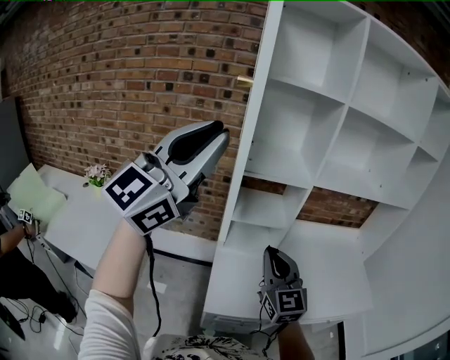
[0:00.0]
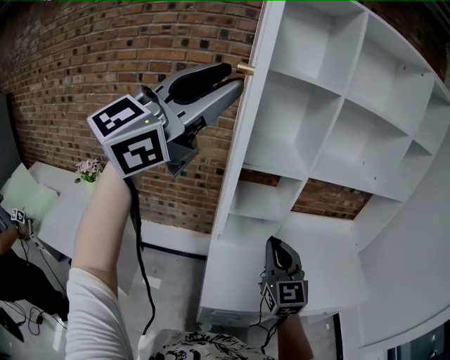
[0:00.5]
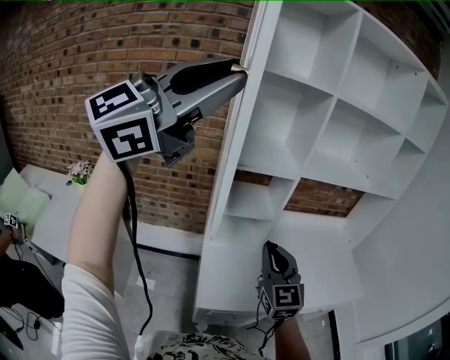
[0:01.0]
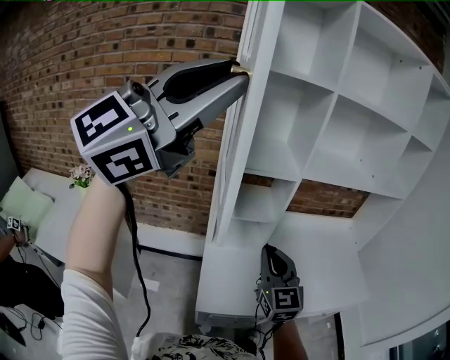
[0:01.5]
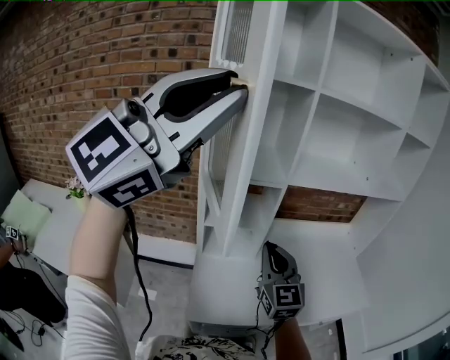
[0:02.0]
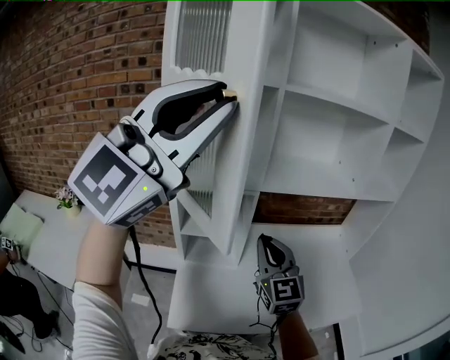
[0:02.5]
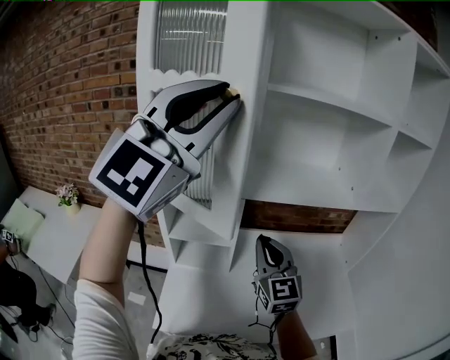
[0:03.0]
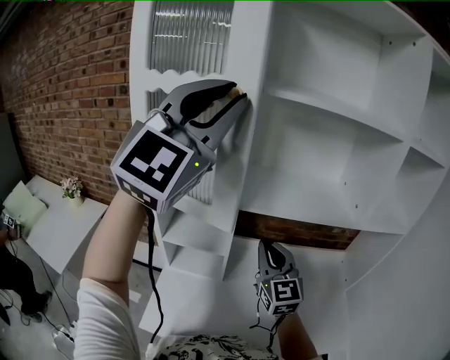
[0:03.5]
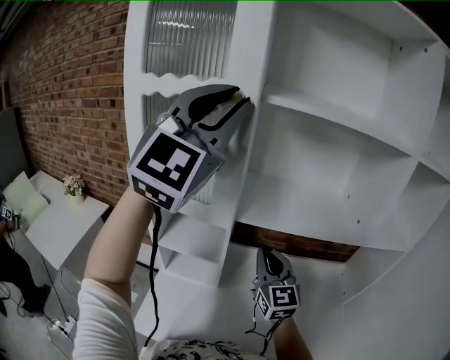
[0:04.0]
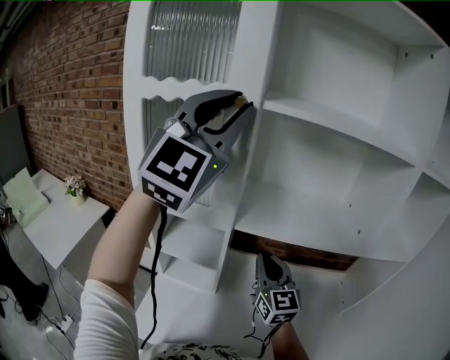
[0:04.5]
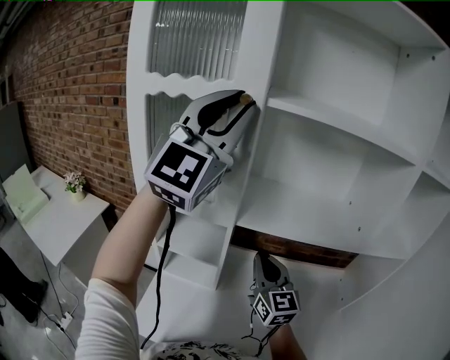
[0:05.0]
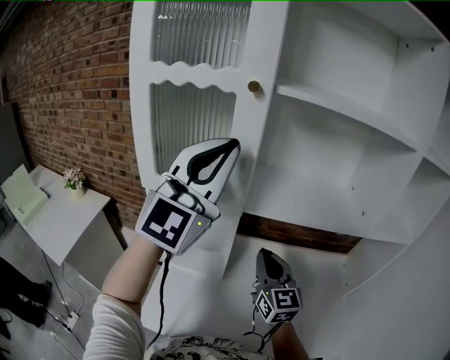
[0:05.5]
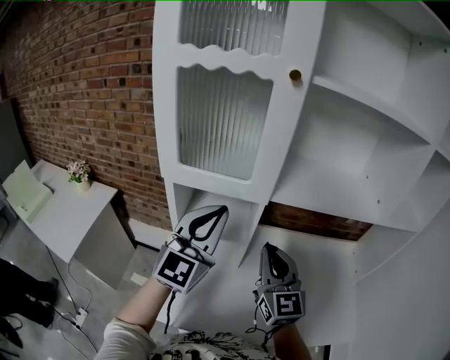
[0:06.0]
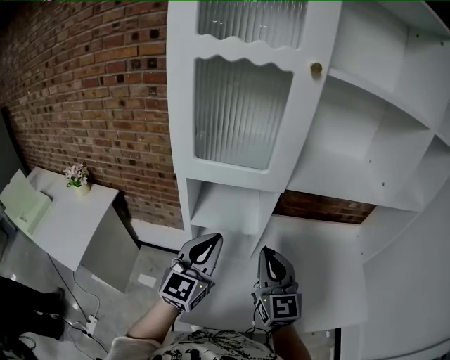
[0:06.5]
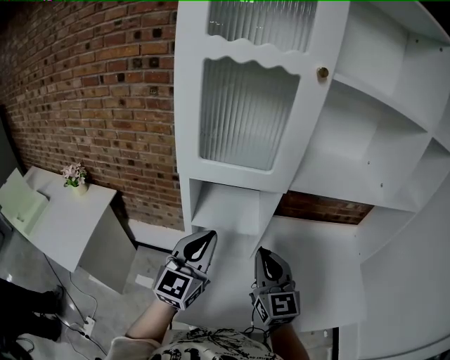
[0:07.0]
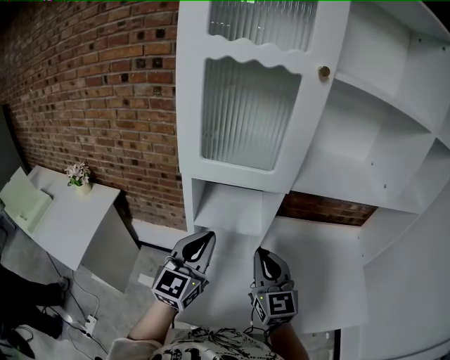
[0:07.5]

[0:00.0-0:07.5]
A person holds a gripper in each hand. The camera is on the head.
0:00.0 to 0:02.0: The right gripper goes approximately 10 cm forward and to the right. The left gripper is displaced to the right, upward and forward by roughly 15 cm.
0:02.0 to 0:04.0: Both grippers move forward and to the right, about 30 cm. The left gripper turns by approximately 40 degrees.
0:04.0 to 0:05.5: The left gripper travels downward by about 10 cm.
0:05.5 to 0:07.5: The left gripper goes approximately 35 cm downward and to the left, and turns by about 40 degrees, while the right gripper heads to the left and backward, covering some 15 cm.

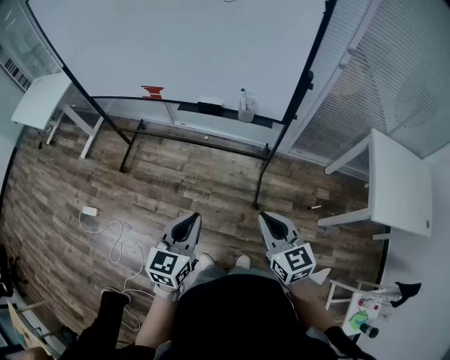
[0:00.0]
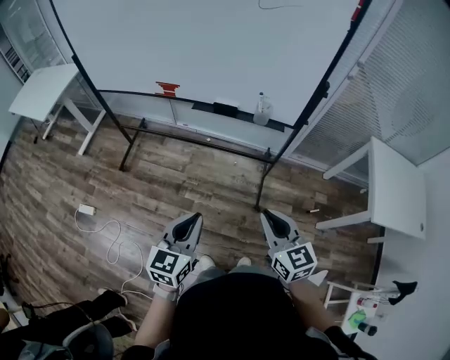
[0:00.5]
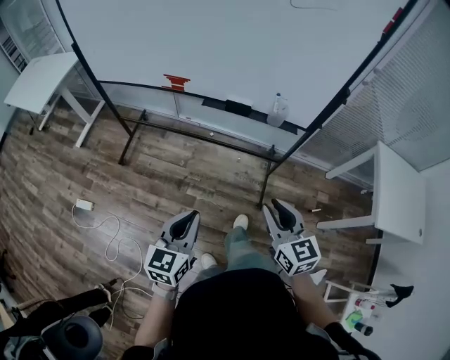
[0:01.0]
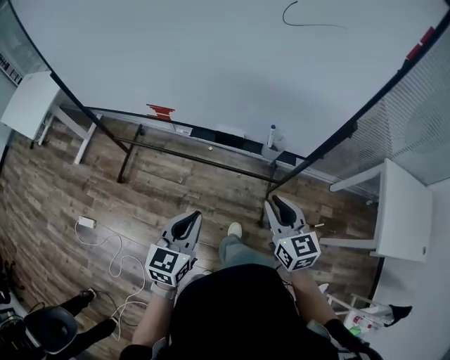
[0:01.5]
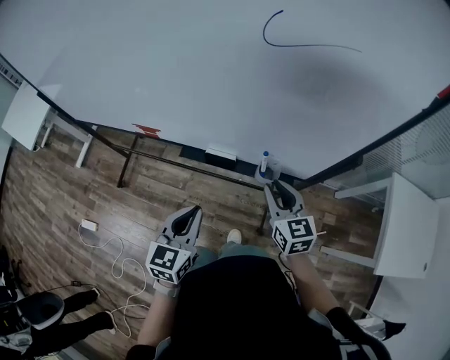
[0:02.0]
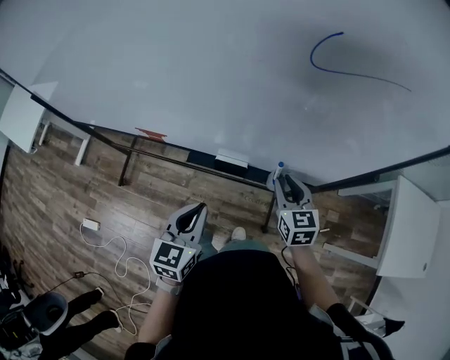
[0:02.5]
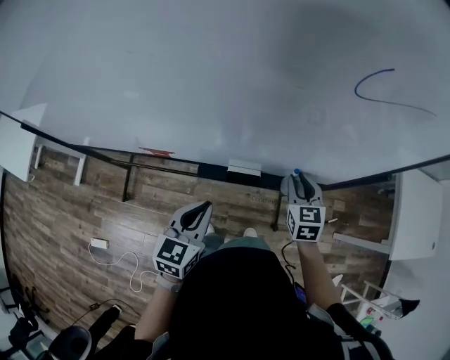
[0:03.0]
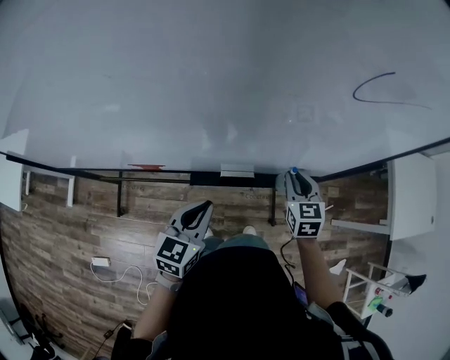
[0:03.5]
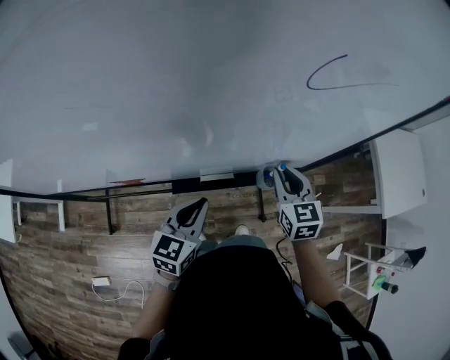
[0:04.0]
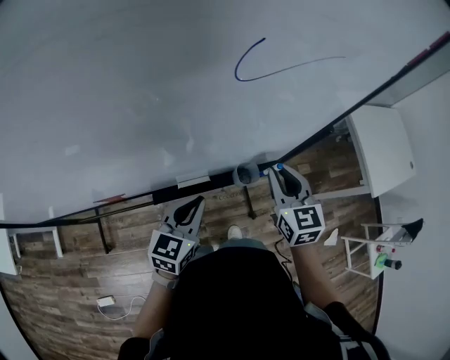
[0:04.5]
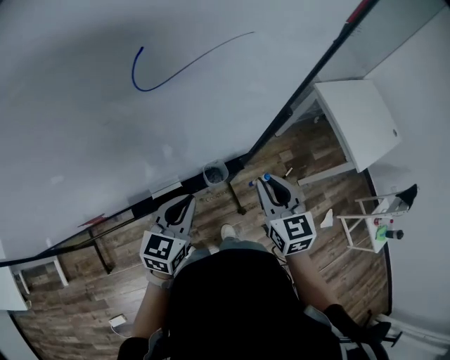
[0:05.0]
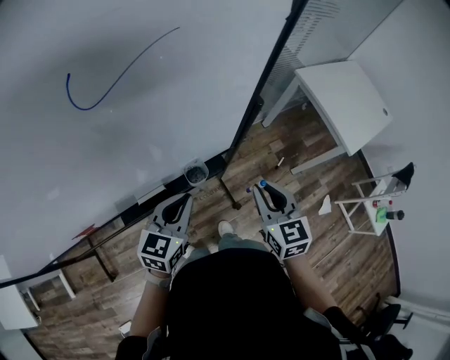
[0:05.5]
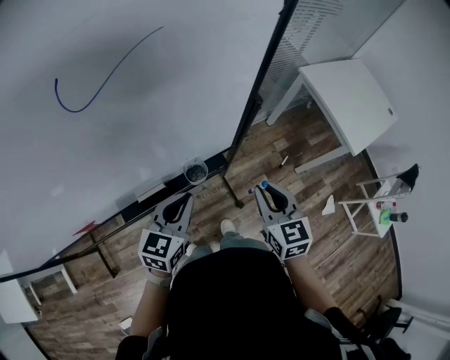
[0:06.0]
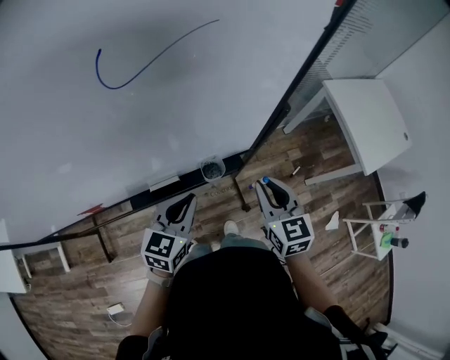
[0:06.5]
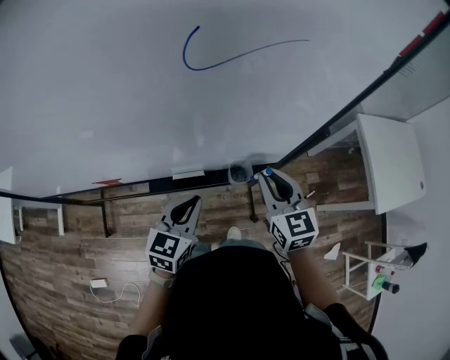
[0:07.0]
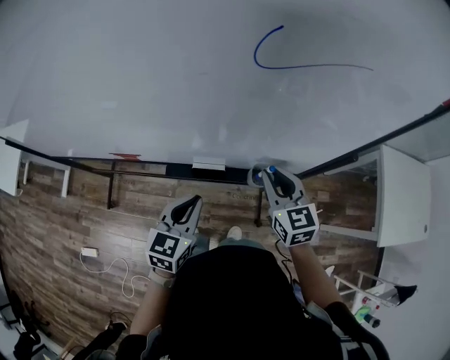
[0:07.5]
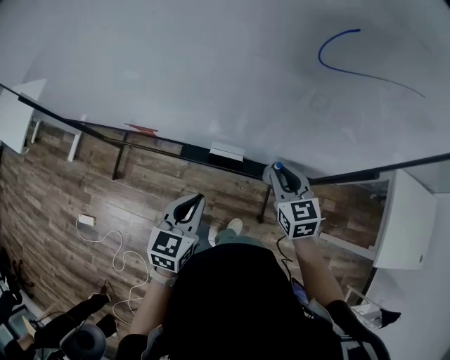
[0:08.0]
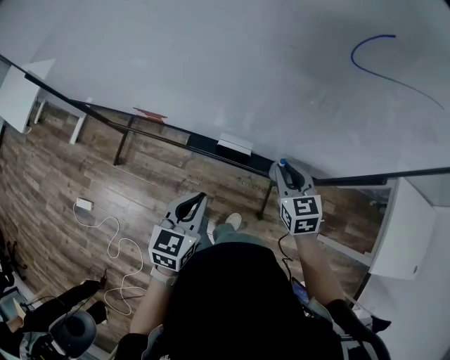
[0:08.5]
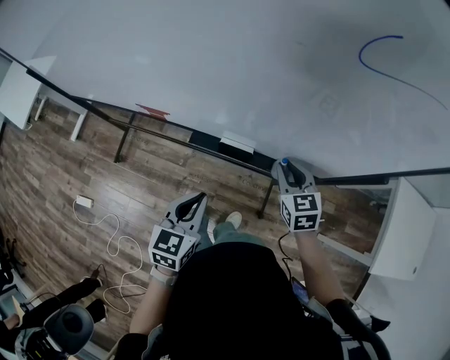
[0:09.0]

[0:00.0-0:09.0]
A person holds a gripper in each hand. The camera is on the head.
0:00.0 to 0:02.0: The two grippers go about 35 cm forward.
0:02.0 to 0:04.5: The left gripper changes place by about 15 cm, and turns by about 40 degrees; the right gripper changes place by about 10 cm, and swivels approximately 30 degrees.
0:04.5 to 0:07.0: The left gripper goes to the right and returns, roughly 10 cm each way, while the right gripper goes to the right and returns, approximately 15 cm each way.
0:07.0 to 0:09.0: The right gripper goes roughly 15 cm downward and to the left, and rotates approximately 30 degrees. Meanwhile the left gripper goes some 10 cm to the left and backward, and changes its angle by roughly 30 degrees.

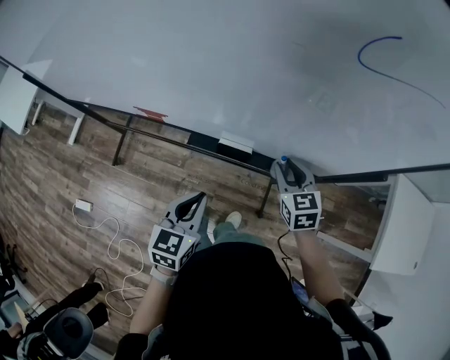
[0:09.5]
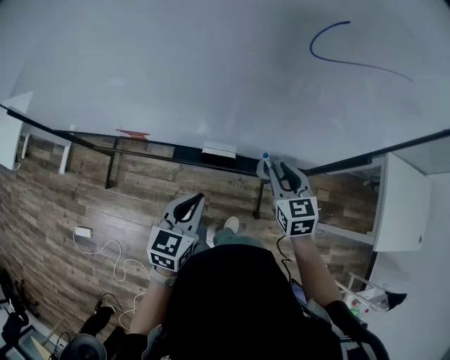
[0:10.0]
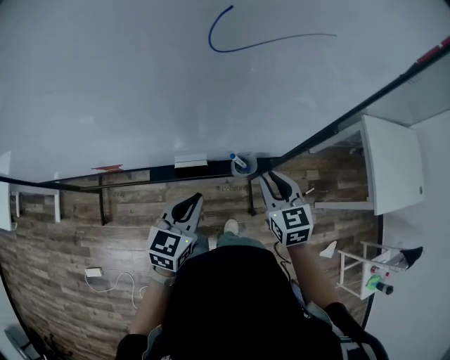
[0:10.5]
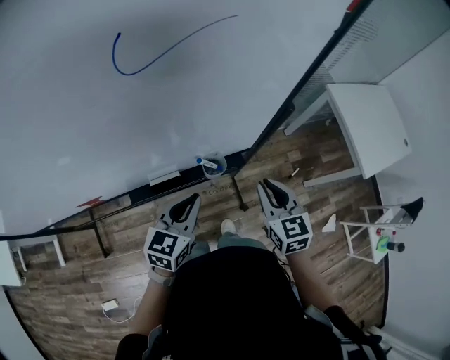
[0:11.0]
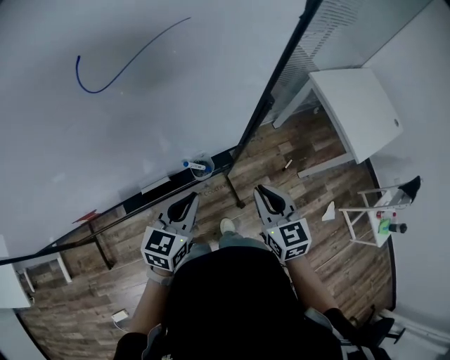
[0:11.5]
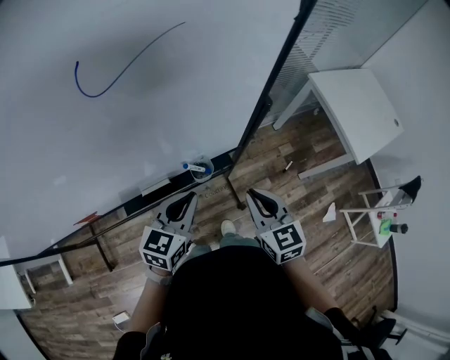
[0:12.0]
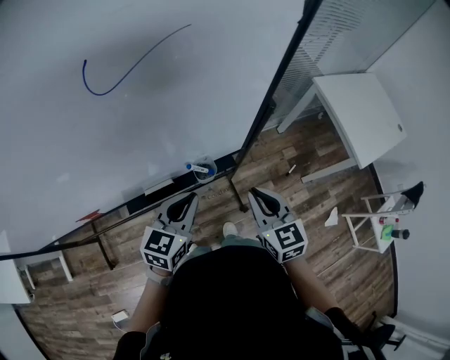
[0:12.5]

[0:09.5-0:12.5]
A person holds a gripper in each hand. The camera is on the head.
0:09.5 to 0:11.0: The right gripper changes place by about 20 cm, and turns by approximately 30 degrees, while the left gripper ends up about 15 cm from where it was, and rotates roughly 40 degrees.
0:11.0 to 0:12.5: The grippers make only small movements.

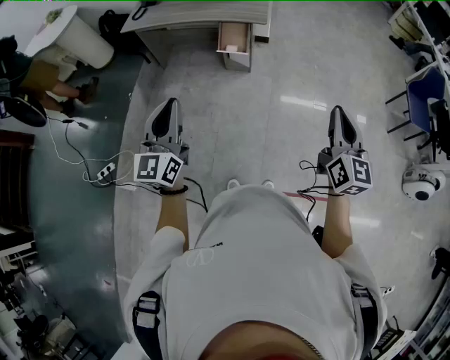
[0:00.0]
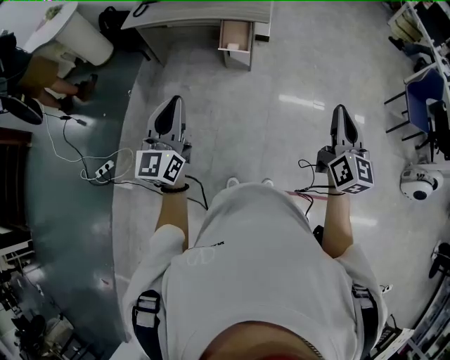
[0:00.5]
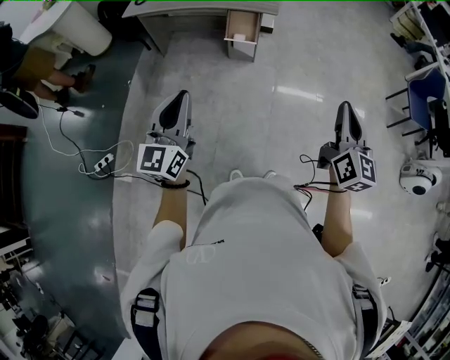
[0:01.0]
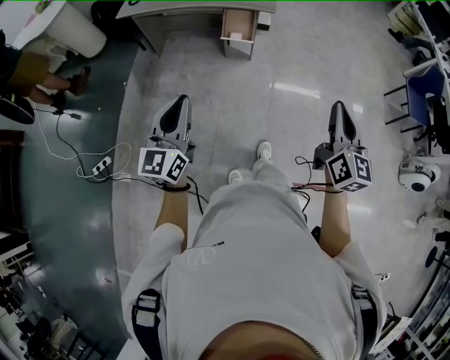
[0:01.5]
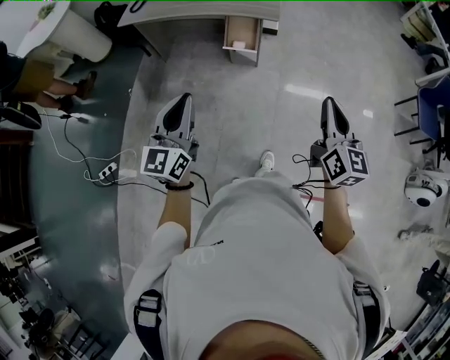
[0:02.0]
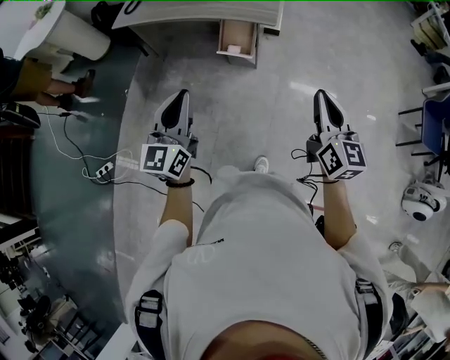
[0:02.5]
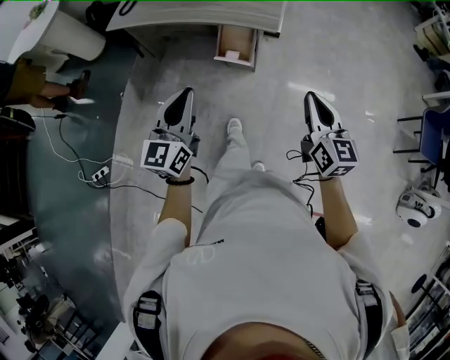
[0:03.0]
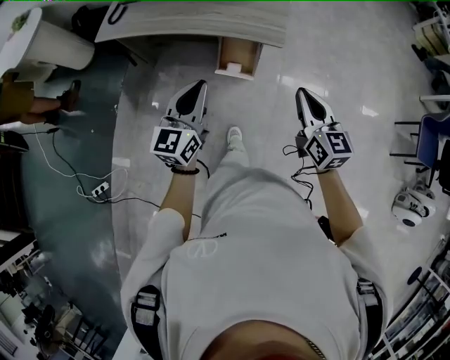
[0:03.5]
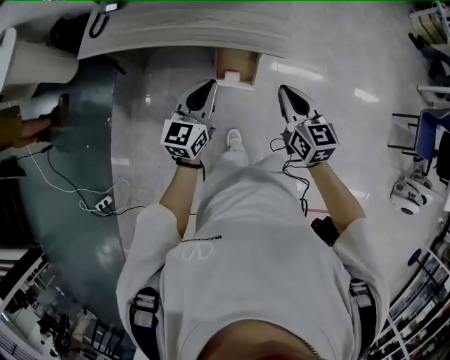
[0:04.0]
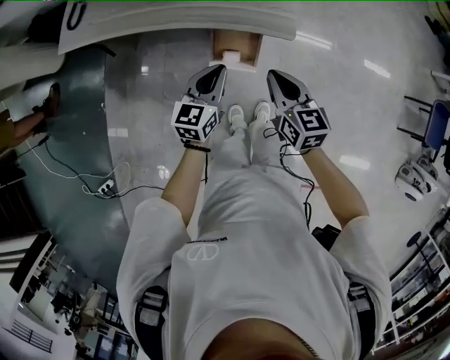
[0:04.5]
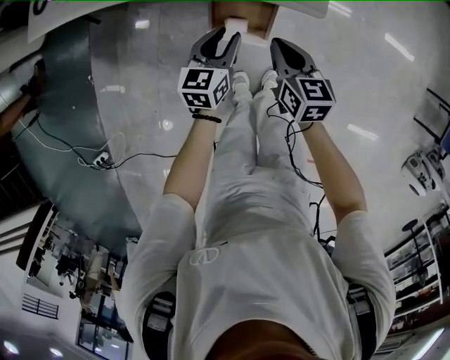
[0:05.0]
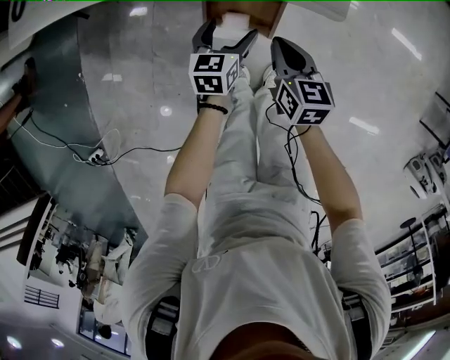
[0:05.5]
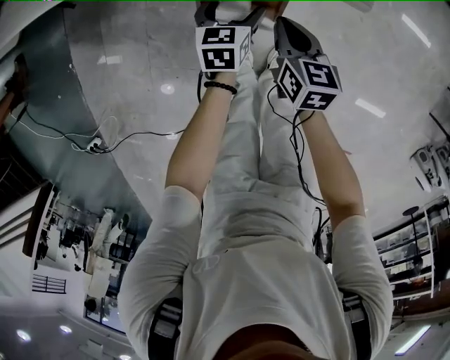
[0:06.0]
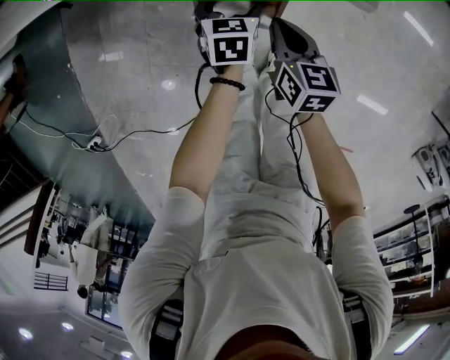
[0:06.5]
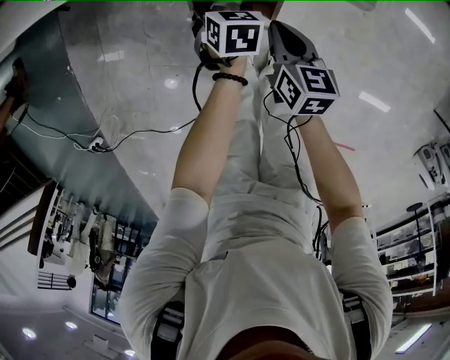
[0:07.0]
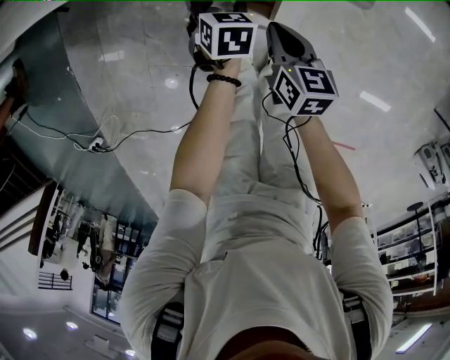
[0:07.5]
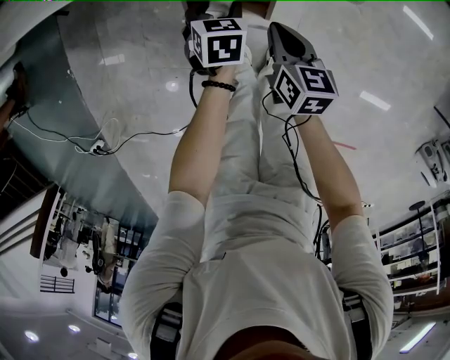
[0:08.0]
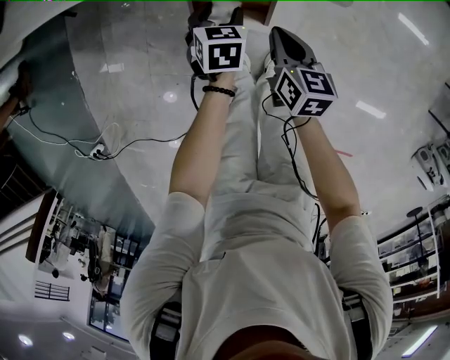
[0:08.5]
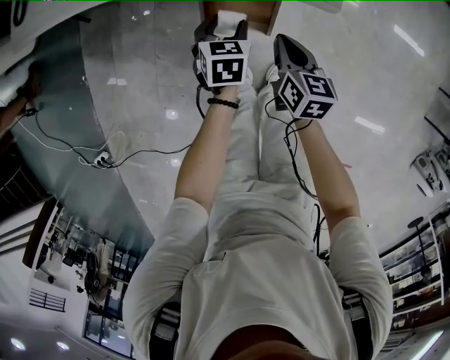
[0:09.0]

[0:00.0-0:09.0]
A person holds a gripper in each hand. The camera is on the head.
0:00.0 to 0:02.0: The right gripper is displaced forward and to the left by approximately 15 cm. The left gripper is displaced forward by about 10 cm.
0:02.0 to 0:04.5: The pair of grippers is taken forward, some 50 cm. Both grippers move downward, approximately 30 cm. The right gripper turns by approximately 30 degrees; the left gripper swivels about 30 degrees.
0:04.5 to 0:07.0: The grippers both shift downward by roughly 35 cm. The left gripper points its fingers some 50 degrees further downward, and opens up; the right gripper swivels some 20 degrees.
0:07.0 to 0:09.0: Both grippers move upward, some 10 cm.
